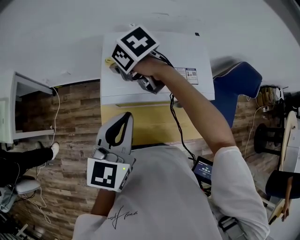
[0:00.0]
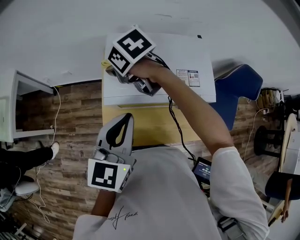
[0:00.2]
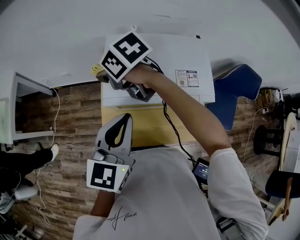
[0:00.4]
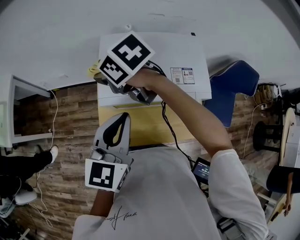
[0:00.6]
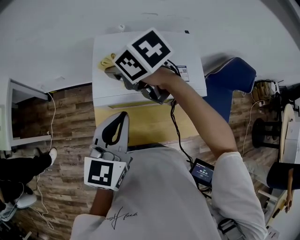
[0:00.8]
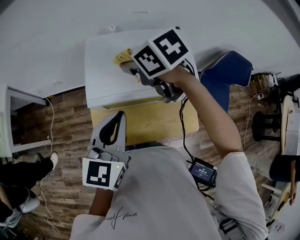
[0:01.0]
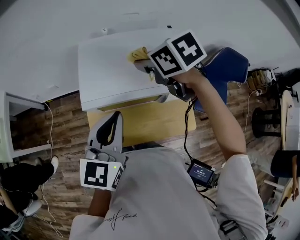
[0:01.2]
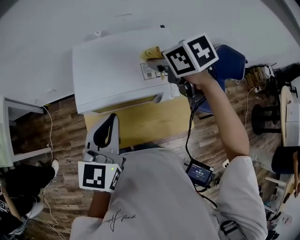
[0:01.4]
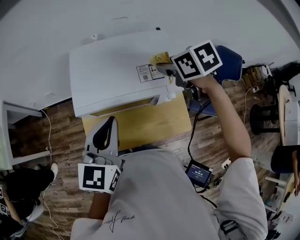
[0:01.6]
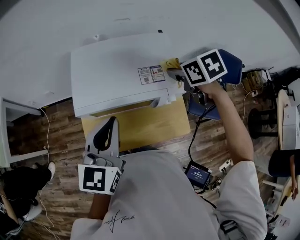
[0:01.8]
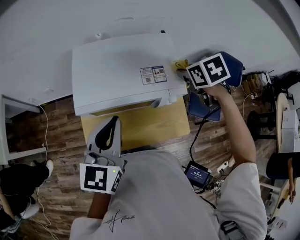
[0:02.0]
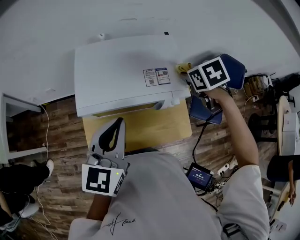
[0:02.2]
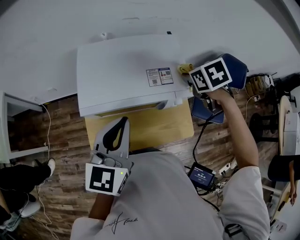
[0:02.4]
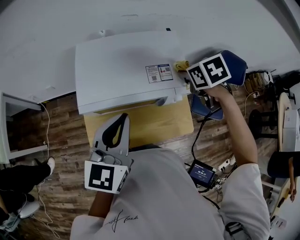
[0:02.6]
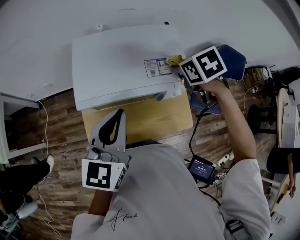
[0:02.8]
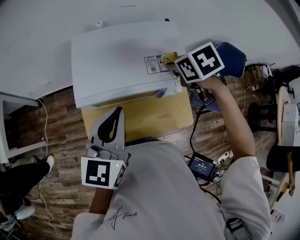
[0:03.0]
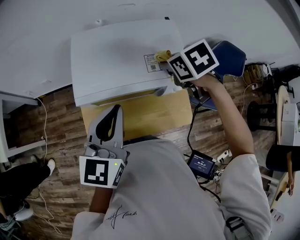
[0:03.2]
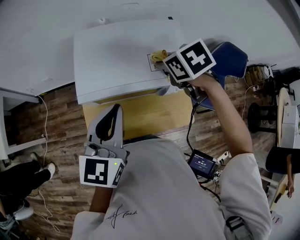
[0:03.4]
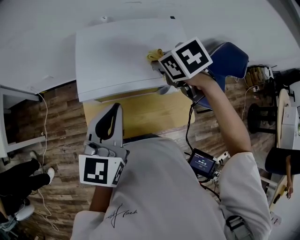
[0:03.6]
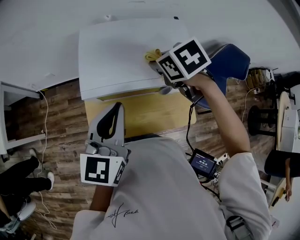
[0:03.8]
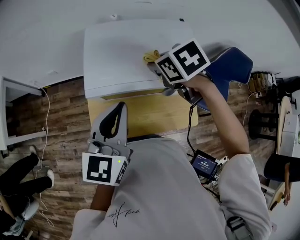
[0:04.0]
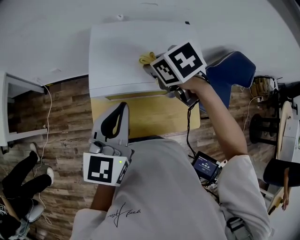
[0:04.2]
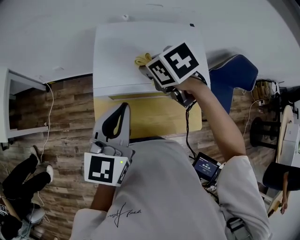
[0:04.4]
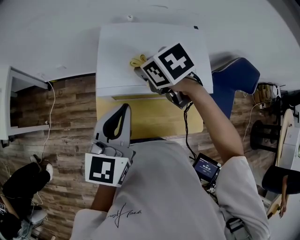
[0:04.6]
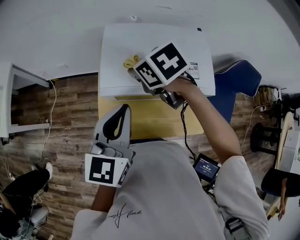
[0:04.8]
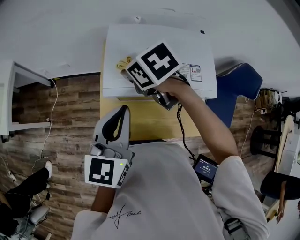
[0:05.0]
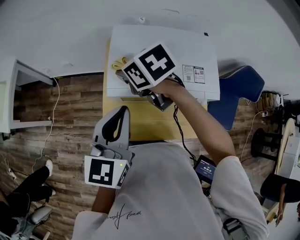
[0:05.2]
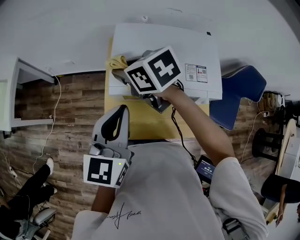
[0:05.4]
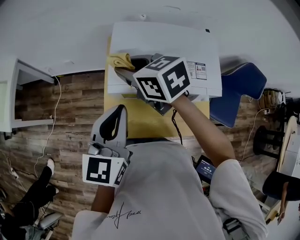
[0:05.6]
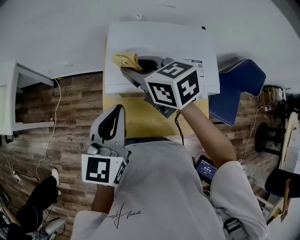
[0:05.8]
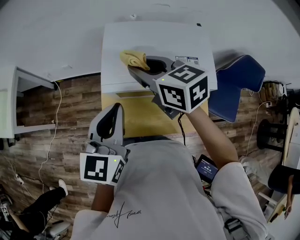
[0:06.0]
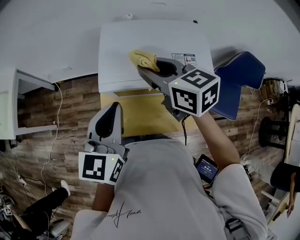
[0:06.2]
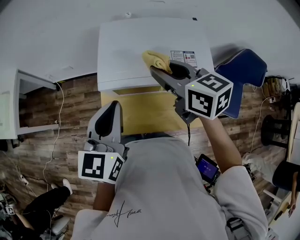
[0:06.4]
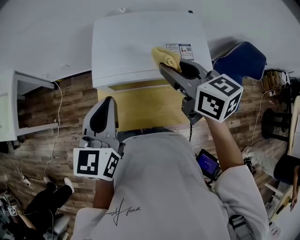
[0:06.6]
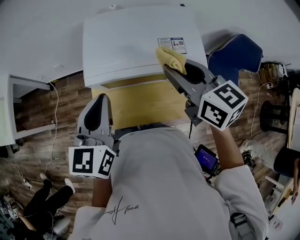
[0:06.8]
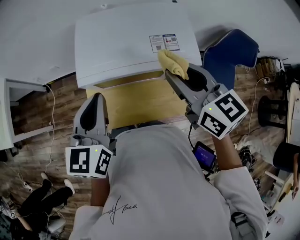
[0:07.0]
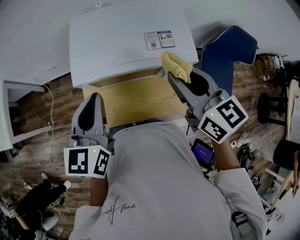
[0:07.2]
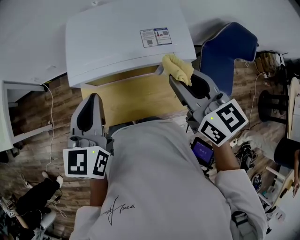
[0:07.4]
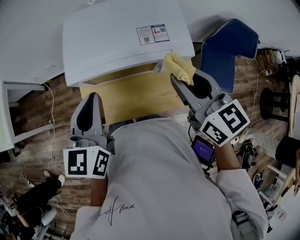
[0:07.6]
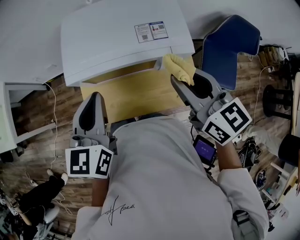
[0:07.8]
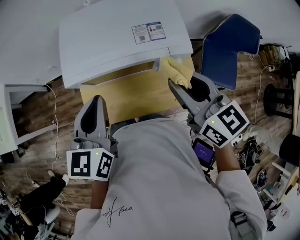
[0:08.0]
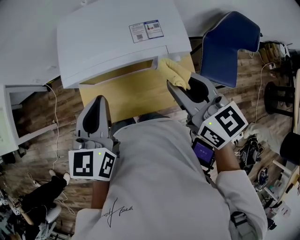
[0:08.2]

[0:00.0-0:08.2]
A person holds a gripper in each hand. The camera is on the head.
0:00.0 to 0:01.6: The left gripper changes place by roughly 5 cm; the right gripper goes some 30 cm to the right and backward, and turns by about 20 degrees.
0:01.6 to 0:03.2: The right gripper reaches some 10 cm to the right, then returns.
0:03.2 to 0:05.0: The right gripper is displaced to the left by approximately 25 cm, and turns by some 20 degrees; the left gripper shifts roughly 5 cm to the left.
0:05.0 to 0:06.6: The right gripper goes roughly 20 cm to the right, backward and upward, and tips its fingers upward by roughly 30 degrees.
0:06.6 to 0:08.2: The left gripper moves to the right, about 5 cm. Meanwhile the right gripper goes approximately 15 cm backward and to the right.

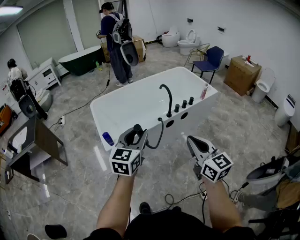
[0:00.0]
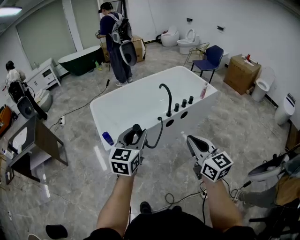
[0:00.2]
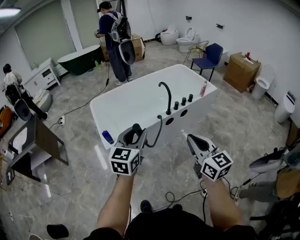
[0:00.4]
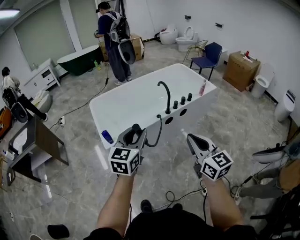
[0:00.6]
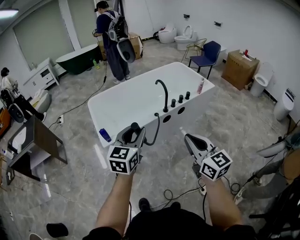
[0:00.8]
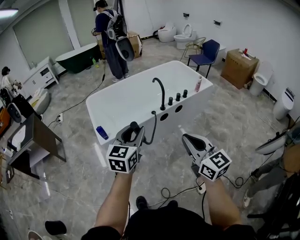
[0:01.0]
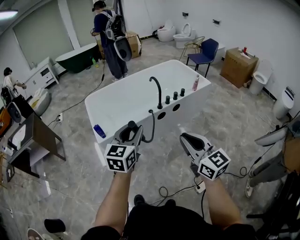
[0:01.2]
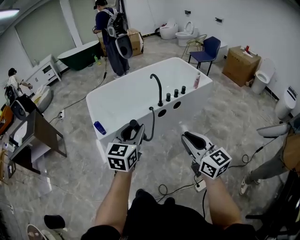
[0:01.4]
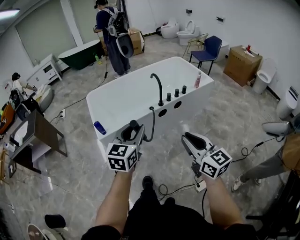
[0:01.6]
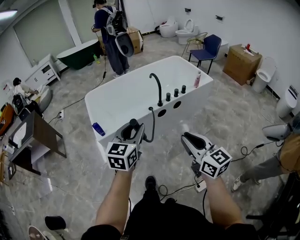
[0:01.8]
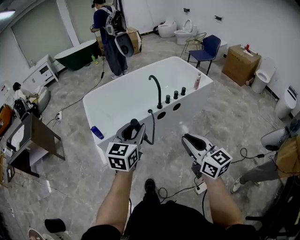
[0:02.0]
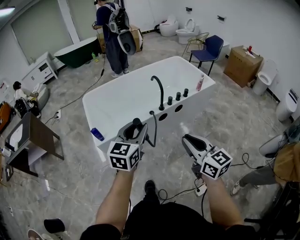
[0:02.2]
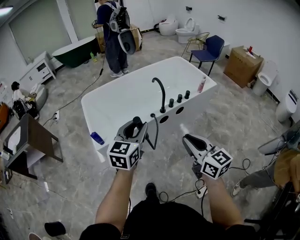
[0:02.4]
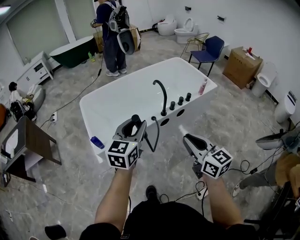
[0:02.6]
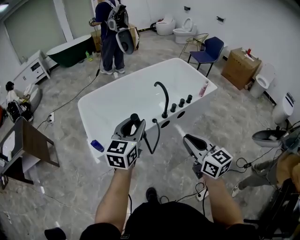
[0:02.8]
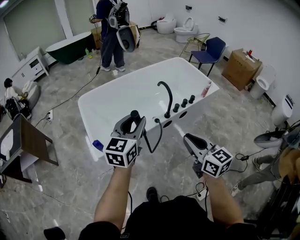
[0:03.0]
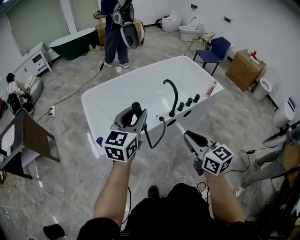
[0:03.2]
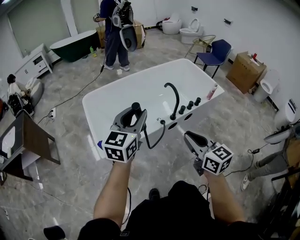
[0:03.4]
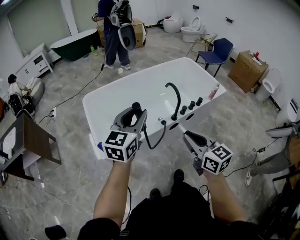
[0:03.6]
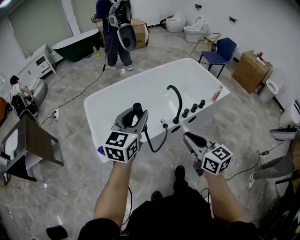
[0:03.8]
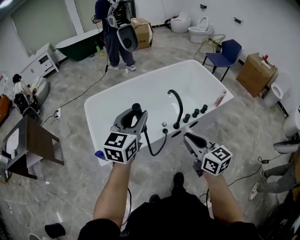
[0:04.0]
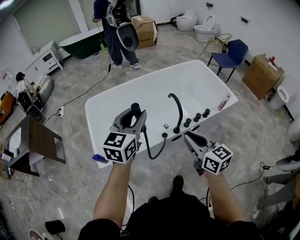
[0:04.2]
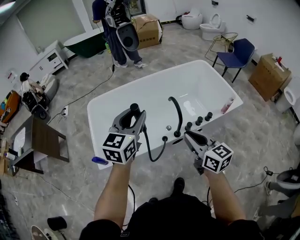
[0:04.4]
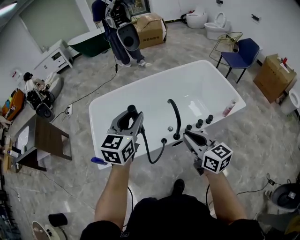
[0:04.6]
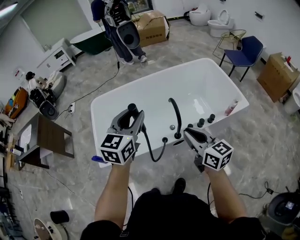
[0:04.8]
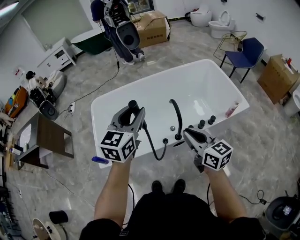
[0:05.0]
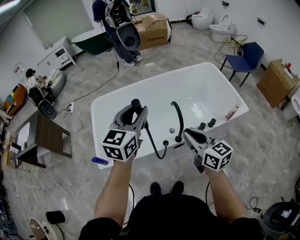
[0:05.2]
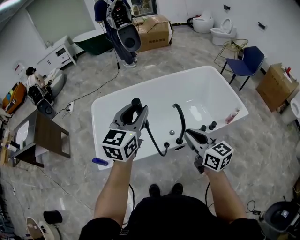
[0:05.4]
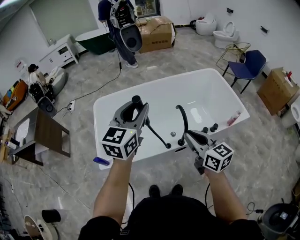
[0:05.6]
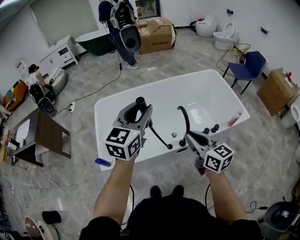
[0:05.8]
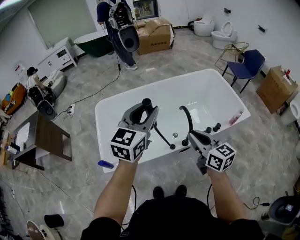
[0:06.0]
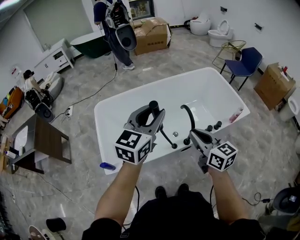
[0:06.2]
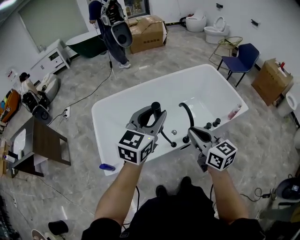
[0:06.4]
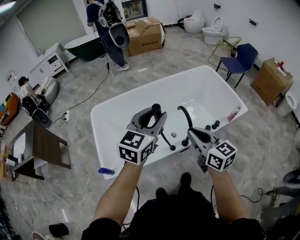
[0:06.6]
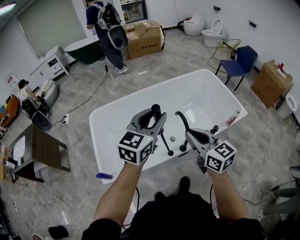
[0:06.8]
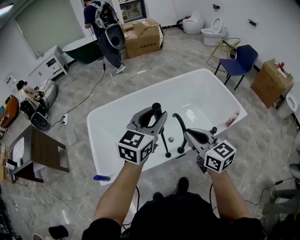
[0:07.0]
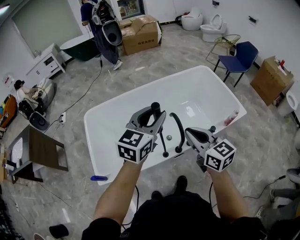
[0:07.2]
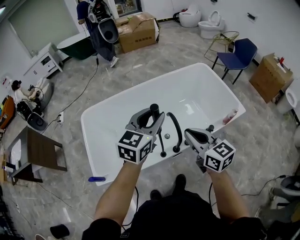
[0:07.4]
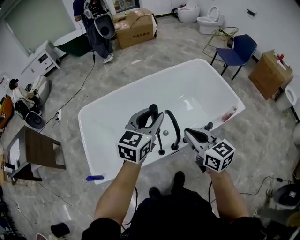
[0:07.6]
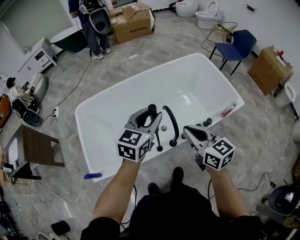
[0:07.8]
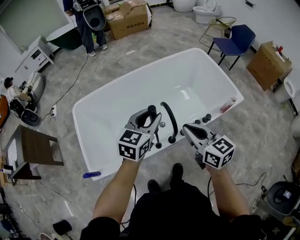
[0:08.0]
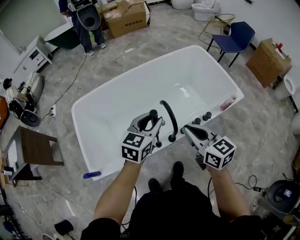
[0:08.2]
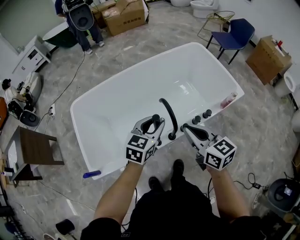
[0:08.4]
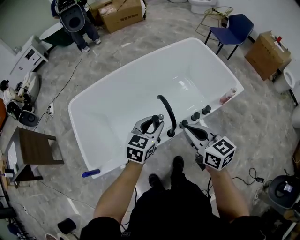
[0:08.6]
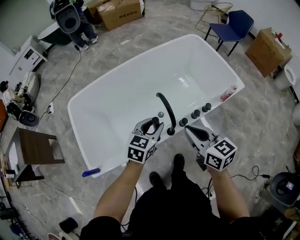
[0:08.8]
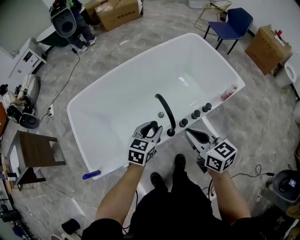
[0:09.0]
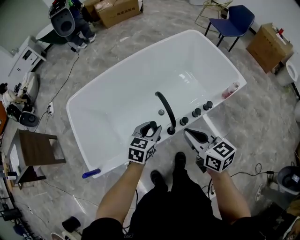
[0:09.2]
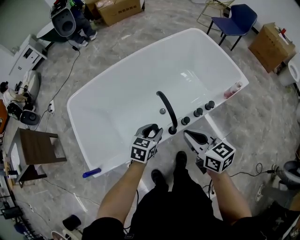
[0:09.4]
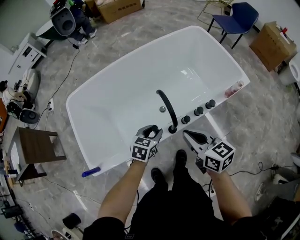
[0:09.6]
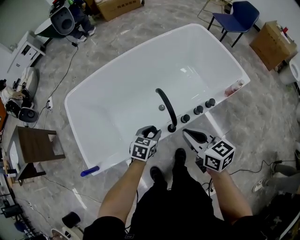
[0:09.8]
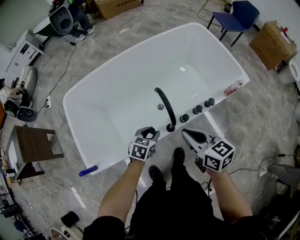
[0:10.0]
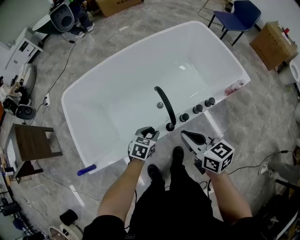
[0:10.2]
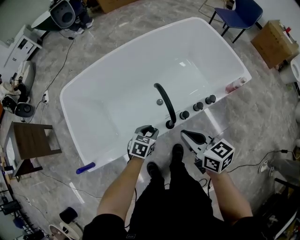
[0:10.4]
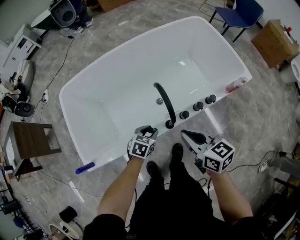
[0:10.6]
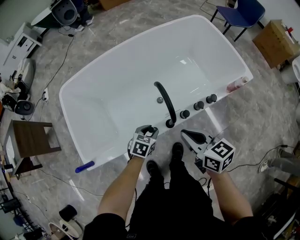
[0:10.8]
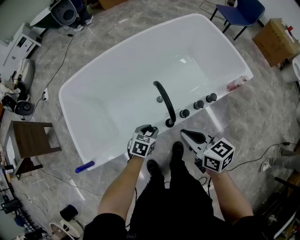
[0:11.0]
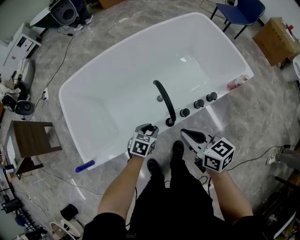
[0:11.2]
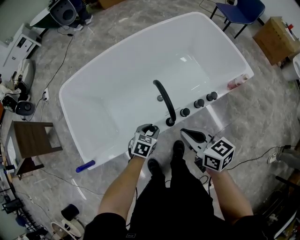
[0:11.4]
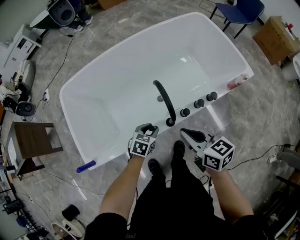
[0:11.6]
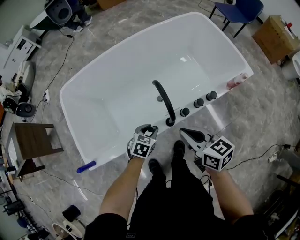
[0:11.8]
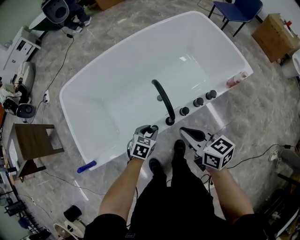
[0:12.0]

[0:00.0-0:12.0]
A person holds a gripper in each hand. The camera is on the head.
0:00.0 to 0:01.6: The two grippers go approximately 5 cm to the right.
0:01.6 to 0:03.0: Both grippers travel together forward, some 20 cm.
0:03.0 to 0:04.4: The grippers both shift forward by approximately 20 cm.
0:04.4 to 0:06.0: The left gripper moves approximately 5 cm. The right gripper goes some 5 cm forward.
0:06.0 to 0:07.6: The right gripper heads forward and to the right, covering approximately 10 cm. The left gripper heads to the right, downward and forward, covering approximately 15 cm.
0:07.6 to 0:09.0: The left gripper travels downward by some 20 cm, and rotates roughly 20 degrees; the right gripper shifts roughly 5 cm downward.
0:09.0 to 0:10.4: The right gripper shifts roughly 5 cm downward, while the left gripper heads downward, covering some 15 cm, and changes its angle by about 20 degrees.
0:10.4 to 0:12.0: There are only small adjustments of the grippers.

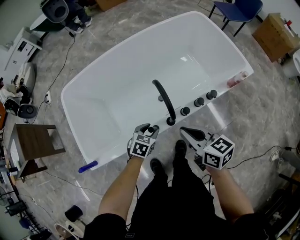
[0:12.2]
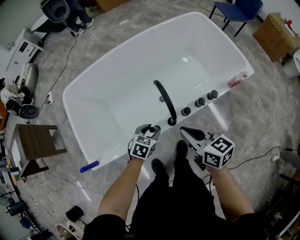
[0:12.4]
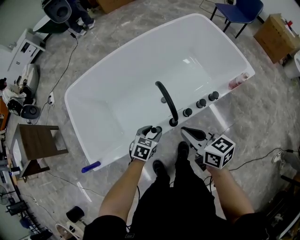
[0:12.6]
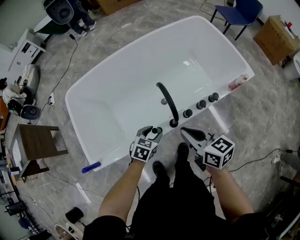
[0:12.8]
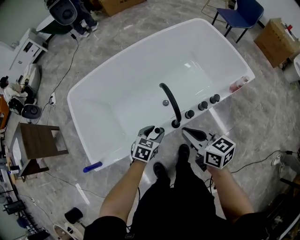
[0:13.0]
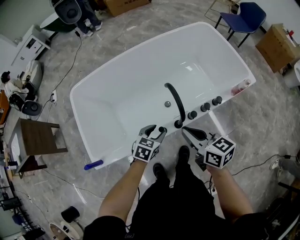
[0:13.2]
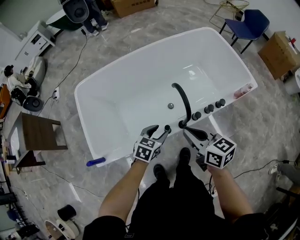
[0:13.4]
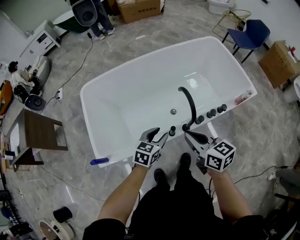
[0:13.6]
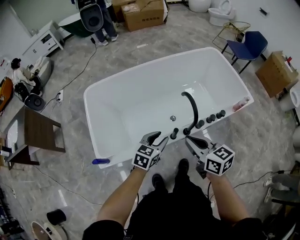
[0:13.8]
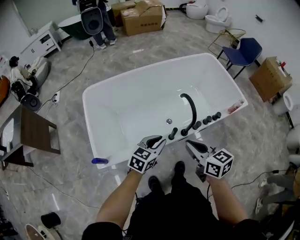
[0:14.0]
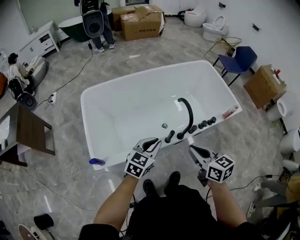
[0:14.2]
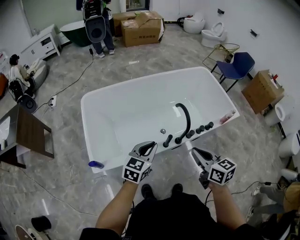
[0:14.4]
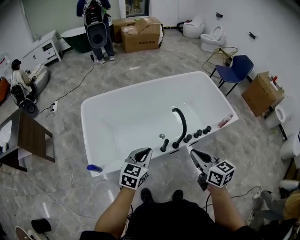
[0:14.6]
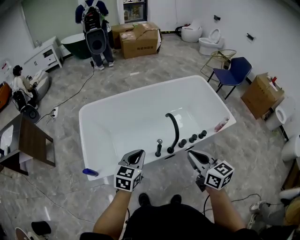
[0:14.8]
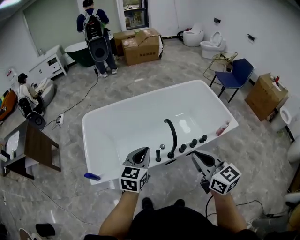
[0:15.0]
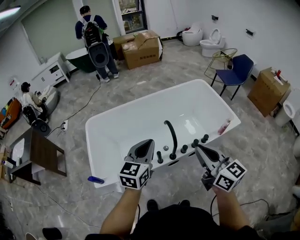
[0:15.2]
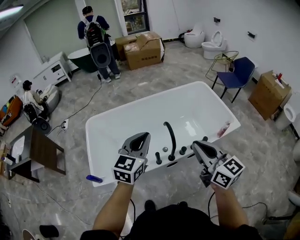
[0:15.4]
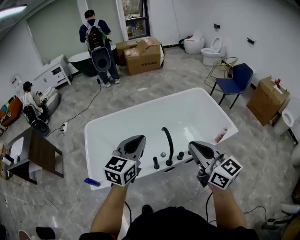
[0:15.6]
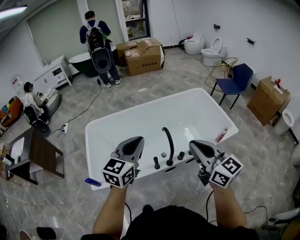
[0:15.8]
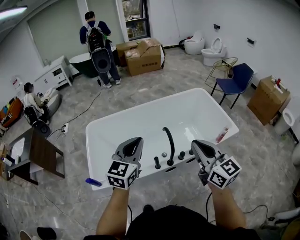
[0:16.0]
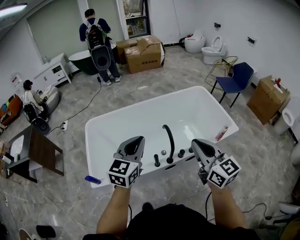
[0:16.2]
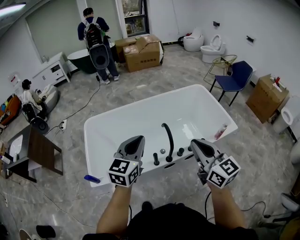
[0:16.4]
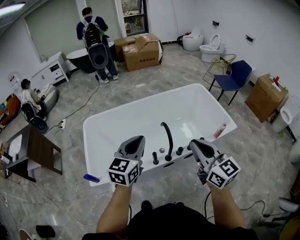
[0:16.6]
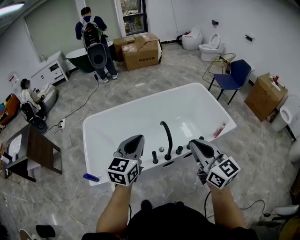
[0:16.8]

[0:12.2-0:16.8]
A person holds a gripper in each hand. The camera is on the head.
0:12.2 to 0:13.8: The left gripper moves upward and to the left, about 15 cm, and rotates roughly 20 degrees. The right gripper heads to the left and upward, covering about 10 cm.
0:13.8 to 0:15.2: The left gripper goes approximately 20 cm upward, changes its angle by roughly 30 degrees, and closes its fingers, while the right gripper heads upward and to the right, covering about 20 cm, and turns by roughly 20 degrees.
0:15.2 to 0:16.8: The grippers stay close to where they were, moving slightly.
